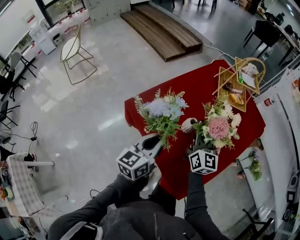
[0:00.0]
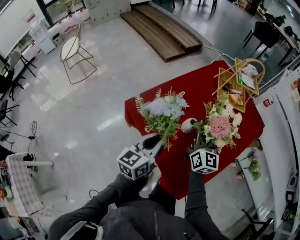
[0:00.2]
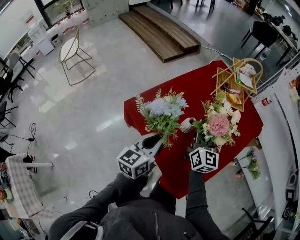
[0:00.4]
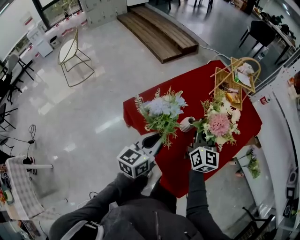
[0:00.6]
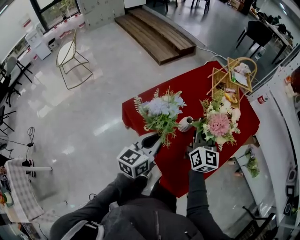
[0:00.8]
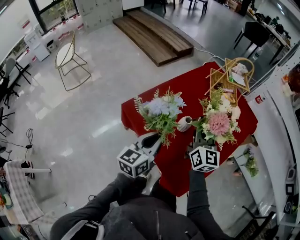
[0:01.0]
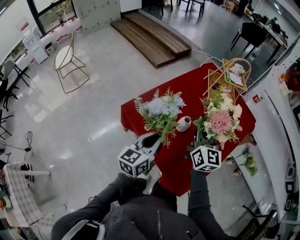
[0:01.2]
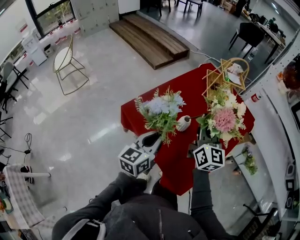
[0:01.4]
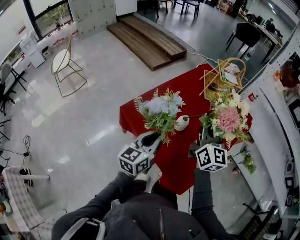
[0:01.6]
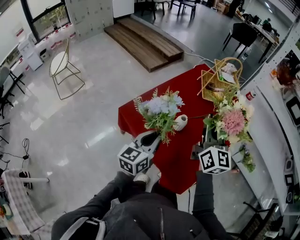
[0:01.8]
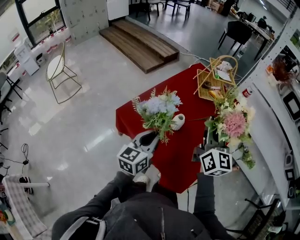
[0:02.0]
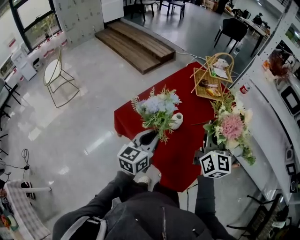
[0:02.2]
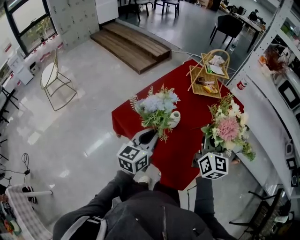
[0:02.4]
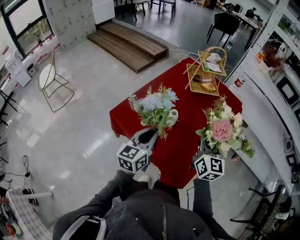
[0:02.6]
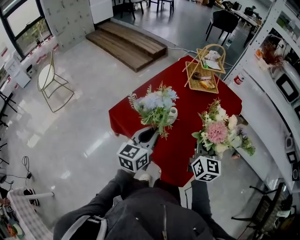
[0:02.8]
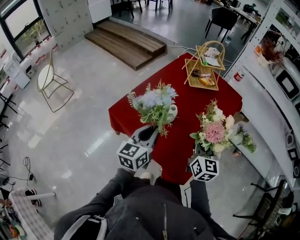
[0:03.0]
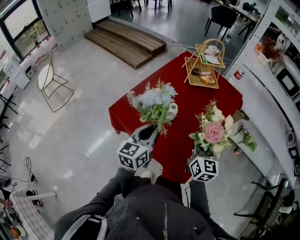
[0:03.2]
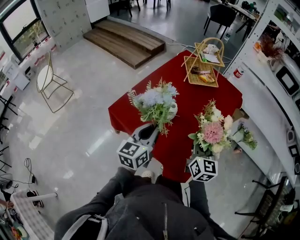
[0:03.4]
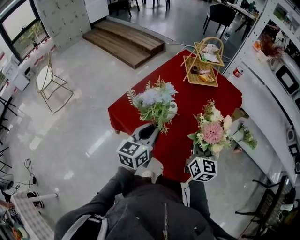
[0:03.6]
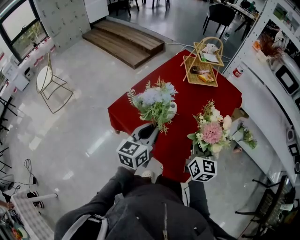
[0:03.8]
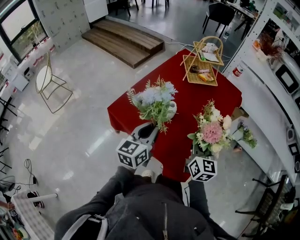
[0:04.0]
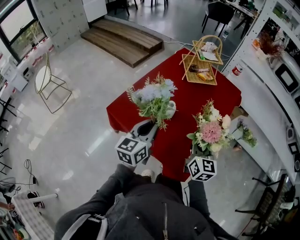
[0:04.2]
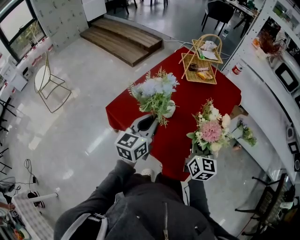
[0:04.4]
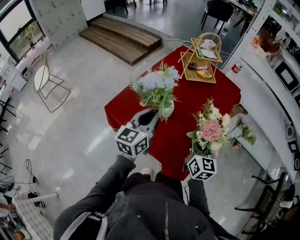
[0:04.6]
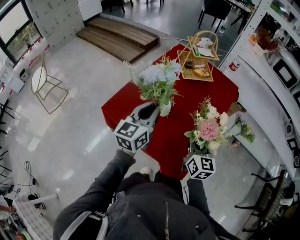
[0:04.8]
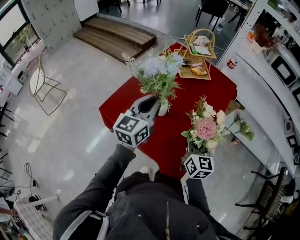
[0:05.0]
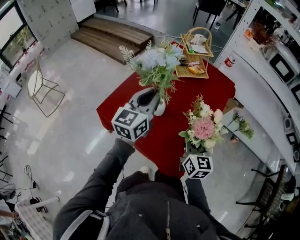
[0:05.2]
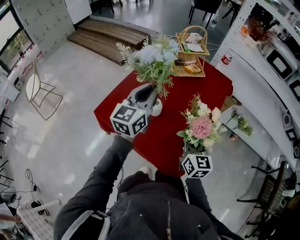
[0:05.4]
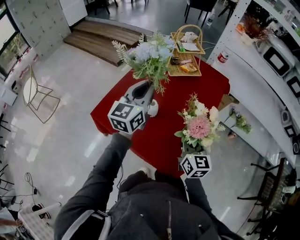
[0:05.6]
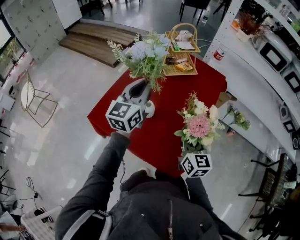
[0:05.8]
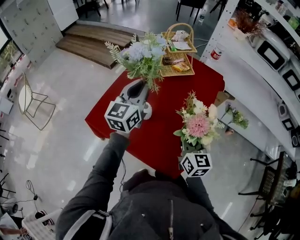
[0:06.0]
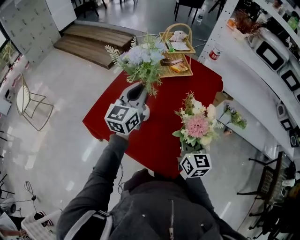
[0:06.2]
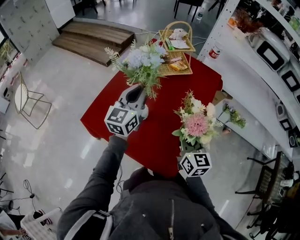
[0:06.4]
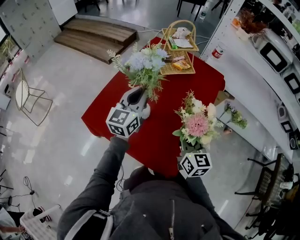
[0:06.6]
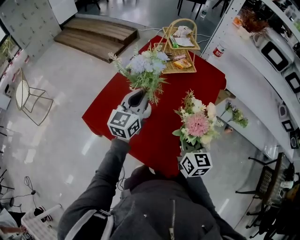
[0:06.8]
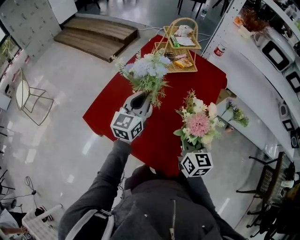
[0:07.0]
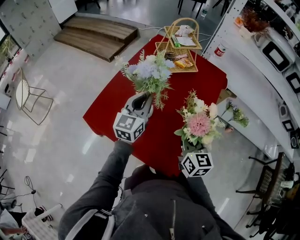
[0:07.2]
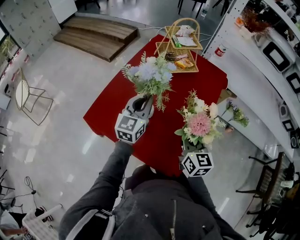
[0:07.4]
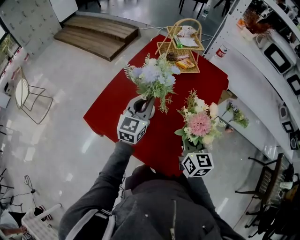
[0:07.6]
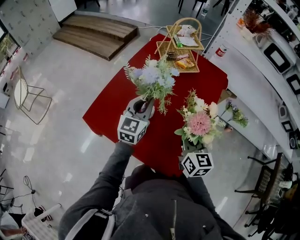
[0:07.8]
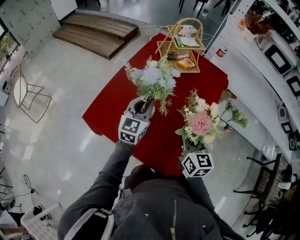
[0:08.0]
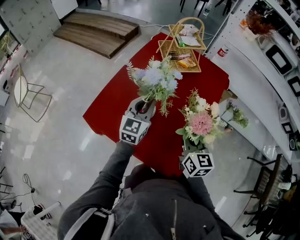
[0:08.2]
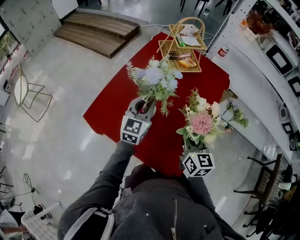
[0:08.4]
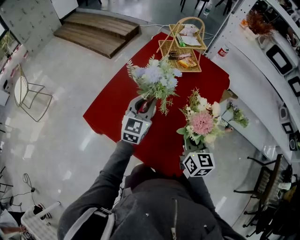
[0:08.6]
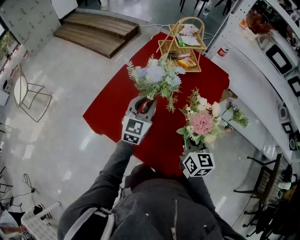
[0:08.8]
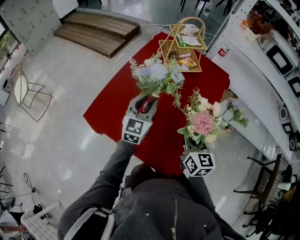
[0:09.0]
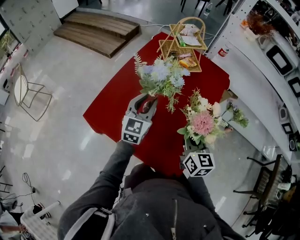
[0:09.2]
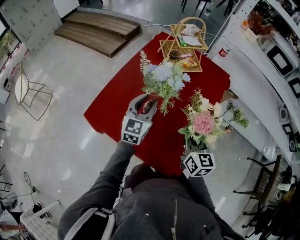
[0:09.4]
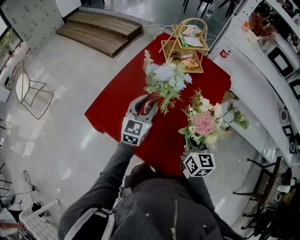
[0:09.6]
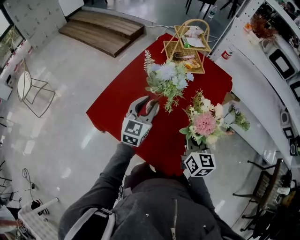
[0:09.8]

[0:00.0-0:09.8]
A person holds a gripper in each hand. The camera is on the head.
0:00.0 to 0:01.4: The right gripper shifts roughly 10 cm upward.
0:01.4 to 0:02.8: The right gripper moves to the right, backward and downward, some 15 cm.
0:02.8 to 0:04.2: The grippers stay close to where they were, moving slightly.
0:04.2 to 0:05.6: The left gripper is displaced forward and upward by approximately 15 cm.
0:05.6 to 0:07.0: The left gripper shifts some 10 cm downward.
0:07.0 to 0:09.8: There are only small adjustments of the grippers.

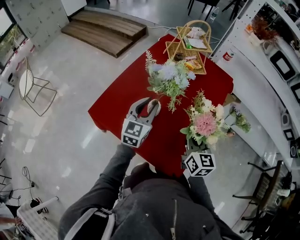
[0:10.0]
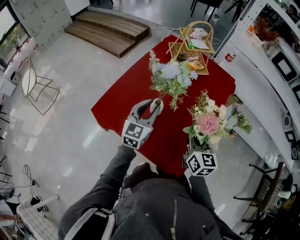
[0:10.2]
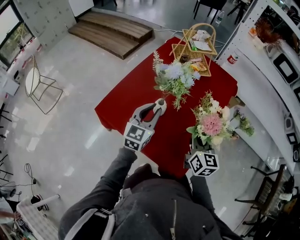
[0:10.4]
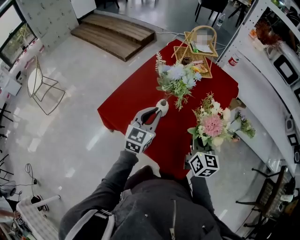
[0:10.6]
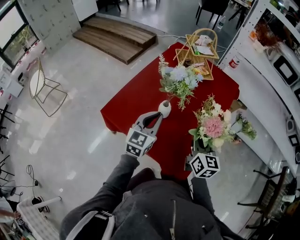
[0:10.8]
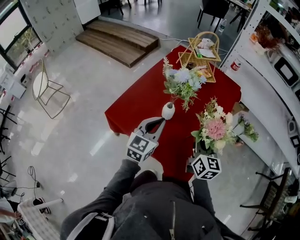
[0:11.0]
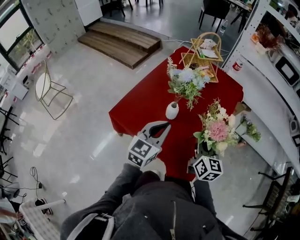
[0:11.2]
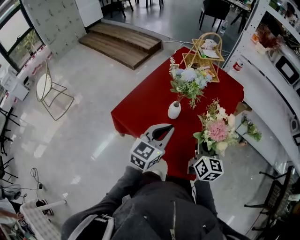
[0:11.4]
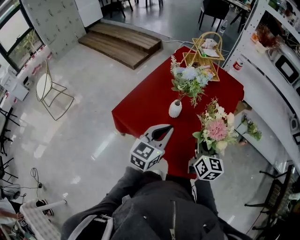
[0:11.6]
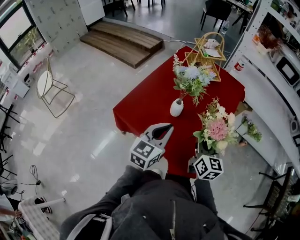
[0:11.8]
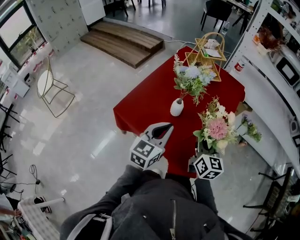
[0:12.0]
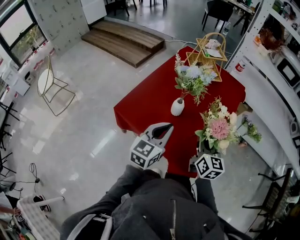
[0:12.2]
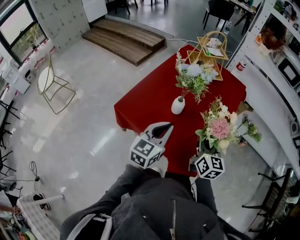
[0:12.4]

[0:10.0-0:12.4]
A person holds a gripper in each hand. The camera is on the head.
0:10.0 to 0:11.2: The left gripper moves backward, roughly 10 cm, and closes up.
0:11.2 to 0:12.4: There are only small adjustments of the grippers.

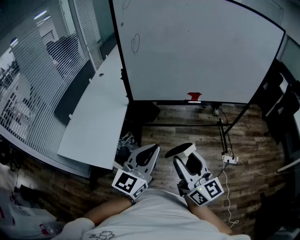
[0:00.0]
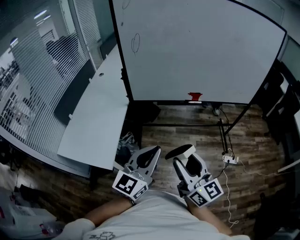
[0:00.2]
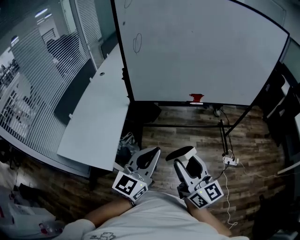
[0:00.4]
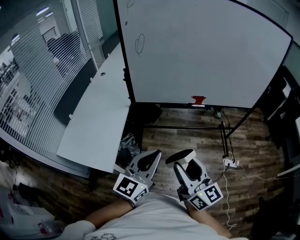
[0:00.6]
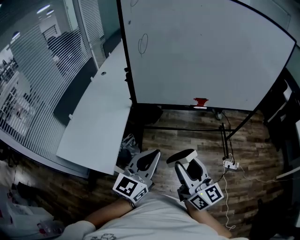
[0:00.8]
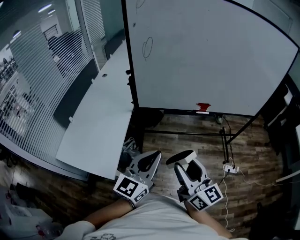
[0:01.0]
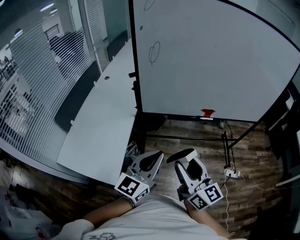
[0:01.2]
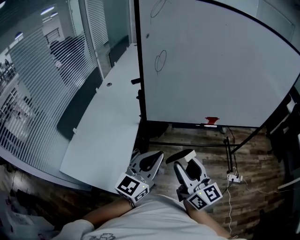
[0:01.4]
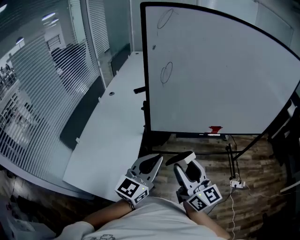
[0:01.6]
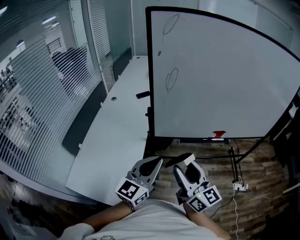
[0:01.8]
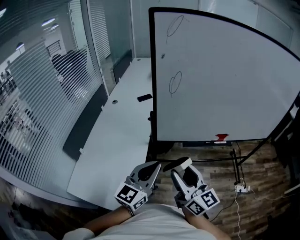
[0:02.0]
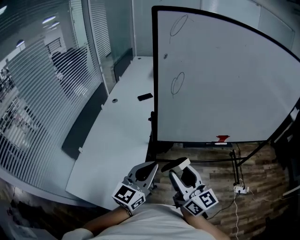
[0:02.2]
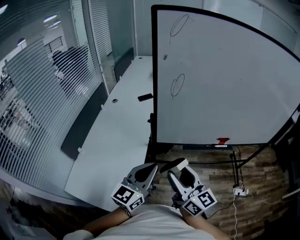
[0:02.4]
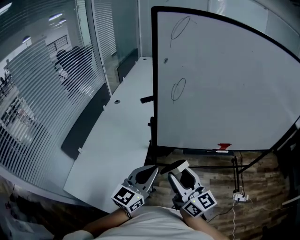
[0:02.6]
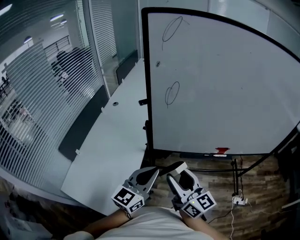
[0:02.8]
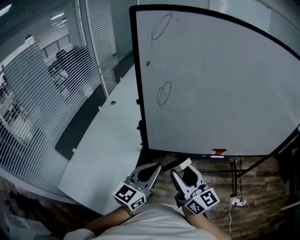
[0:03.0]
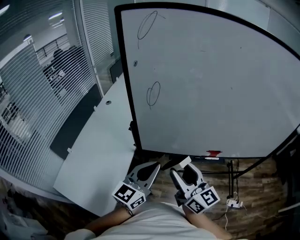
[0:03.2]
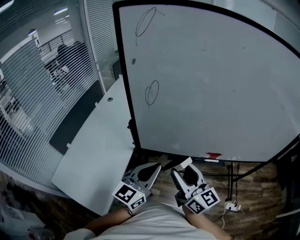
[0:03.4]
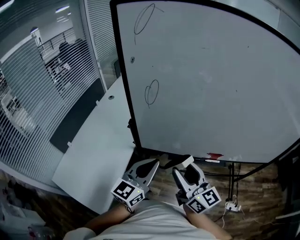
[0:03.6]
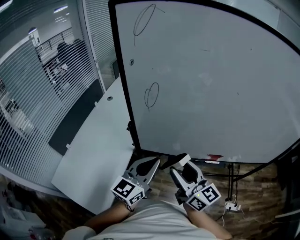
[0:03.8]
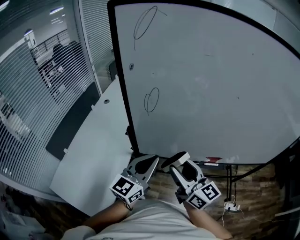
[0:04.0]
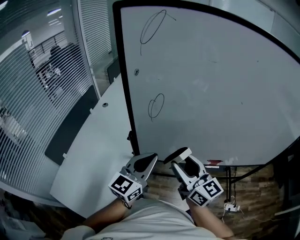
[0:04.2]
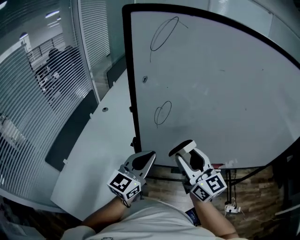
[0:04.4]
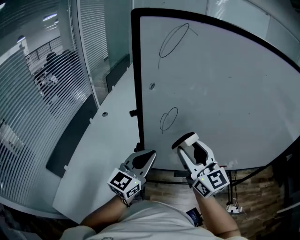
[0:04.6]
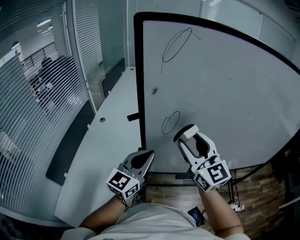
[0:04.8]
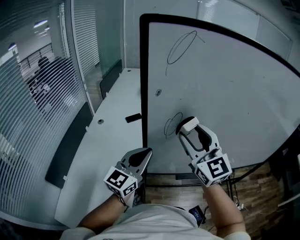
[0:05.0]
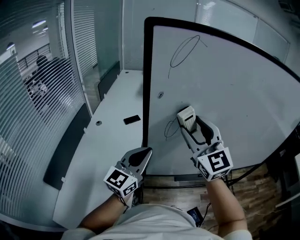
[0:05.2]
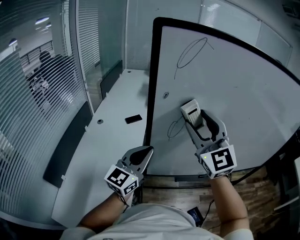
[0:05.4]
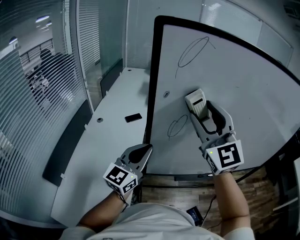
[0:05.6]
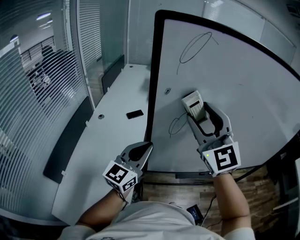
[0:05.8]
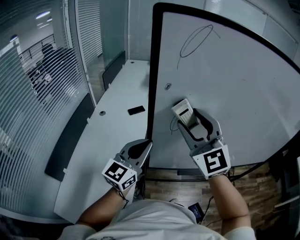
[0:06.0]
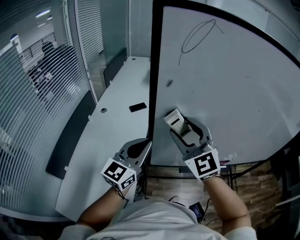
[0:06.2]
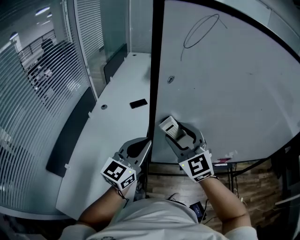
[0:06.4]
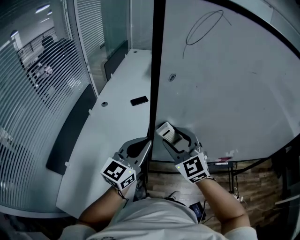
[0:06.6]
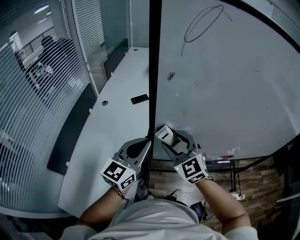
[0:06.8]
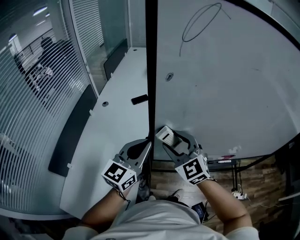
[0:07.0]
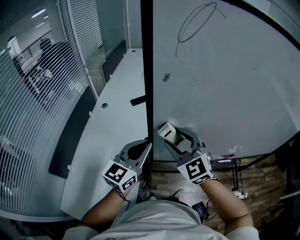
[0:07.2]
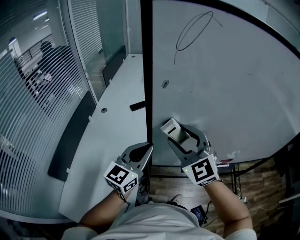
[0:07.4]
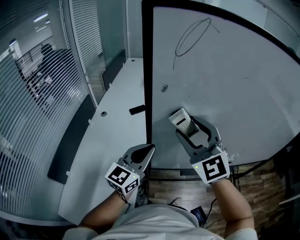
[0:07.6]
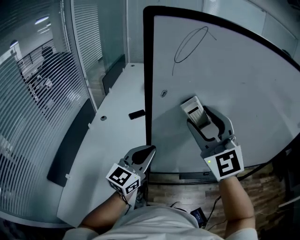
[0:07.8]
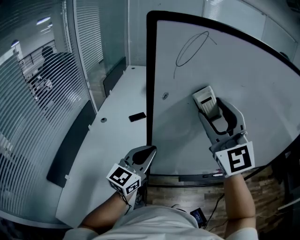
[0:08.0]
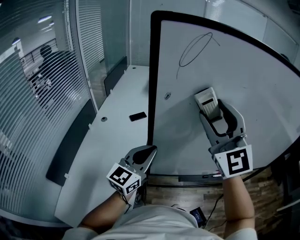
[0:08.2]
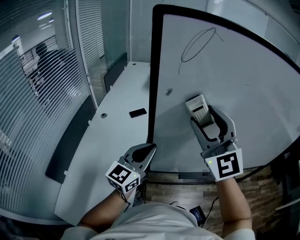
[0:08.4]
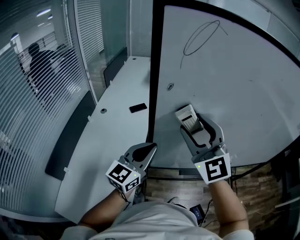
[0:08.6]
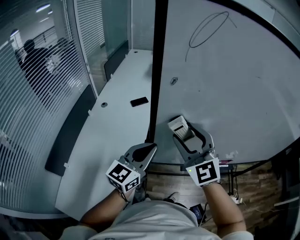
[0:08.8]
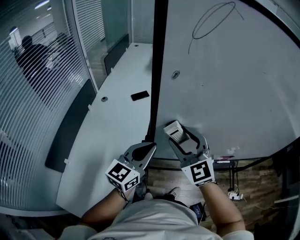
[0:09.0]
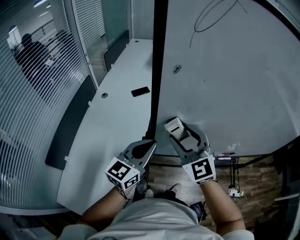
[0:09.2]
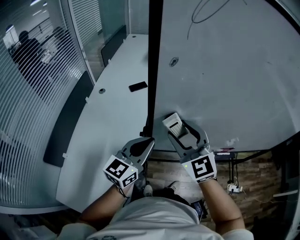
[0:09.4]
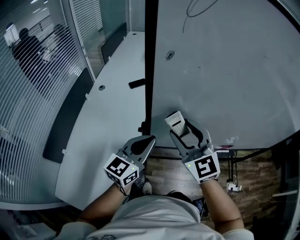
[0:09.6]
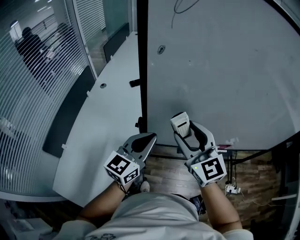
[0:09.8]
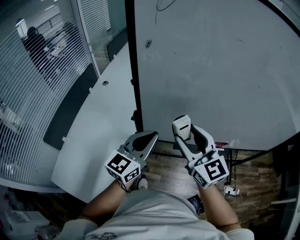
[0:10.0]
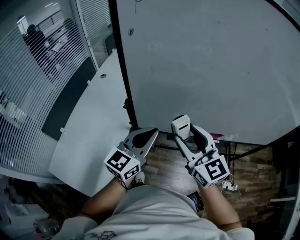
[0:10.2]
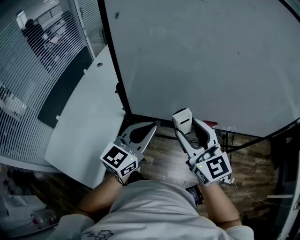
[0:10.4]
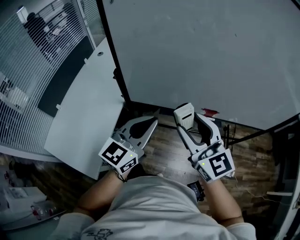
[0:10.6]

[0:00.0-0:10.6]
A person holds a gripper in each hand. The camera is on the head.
0:00.0 to 0:01.6: Both grippers move forward and to the left, roughly 25 cm.
0:01.6 to 0:03.0: Both grippers move forward, roughly 15 cm.
0:03.0 to 0:04.6: The right gripper is displaced forward and upward by roughly 20 cm, and turns by approximately 20 degrees. Meanwhile the left gripper heads forward, covering roughly 15 cm.
0:04.6 to 0:06.0: The left gripper moves to the left, some 5 cm. Meanwhile the right gripper heads upward and to the left, covering about 10 cm, and rotates about 30 degrees.
0:06.0 to 0:07.6: The right gripper reaches approximately 20 cm downward, then returns.
0:07.6 to 0:09.0: The right gripper shifts approximately 10 cm downward.
0:09.0 to 0:10.6: Both grippers travel together to the right and backward, some 30 cm. The right gripper turns by roughly 20 degrees.

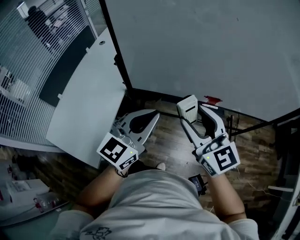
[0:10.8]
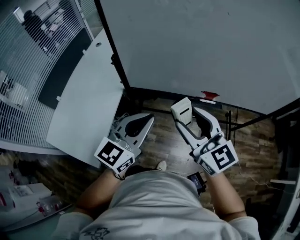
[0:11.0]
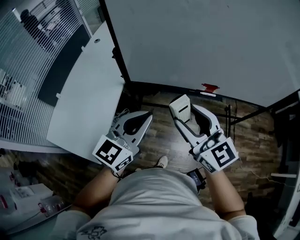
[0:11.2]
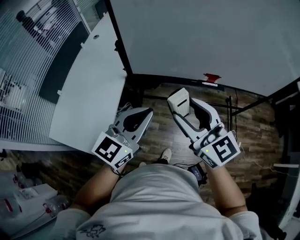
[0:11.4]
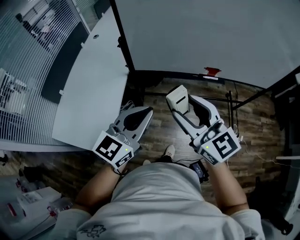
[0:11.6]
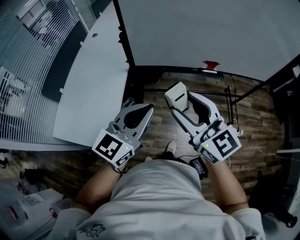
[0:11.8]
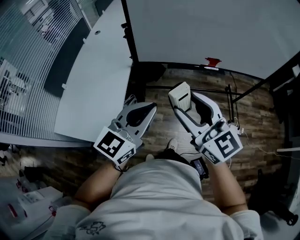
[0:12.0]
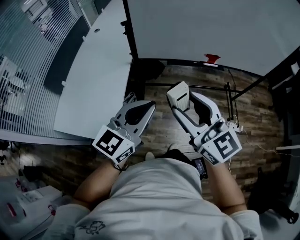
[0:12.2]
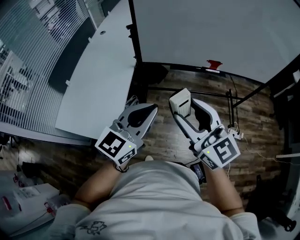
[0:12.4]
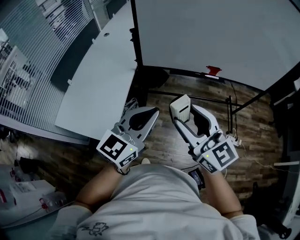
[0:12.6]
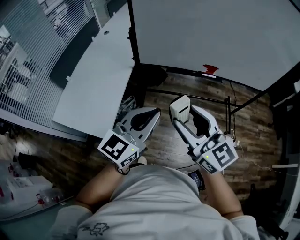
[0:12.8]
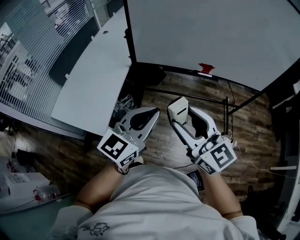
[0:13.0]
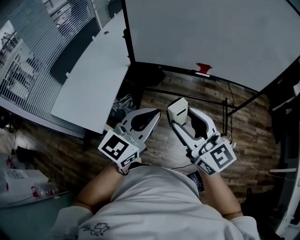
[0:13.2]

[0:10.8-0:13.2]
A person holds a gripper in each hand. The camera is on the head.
0:10.8 to 0:12.0: The grippers both shift backward and to the left by about 20 cm.
0:12.0 to 0:13.2: The grippers both shift to the right and backward by some 15 cm.
